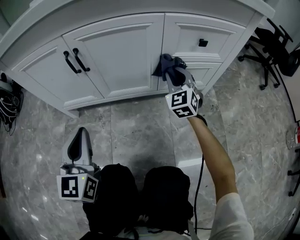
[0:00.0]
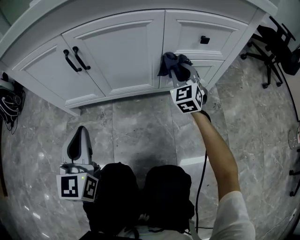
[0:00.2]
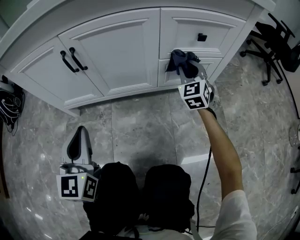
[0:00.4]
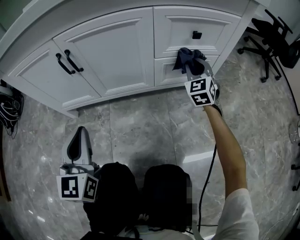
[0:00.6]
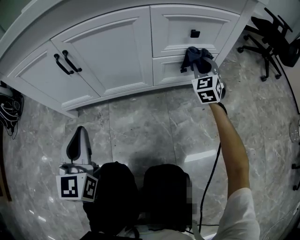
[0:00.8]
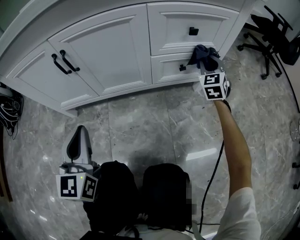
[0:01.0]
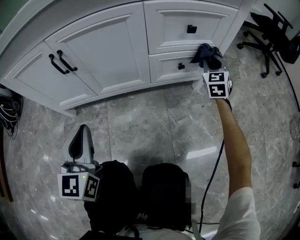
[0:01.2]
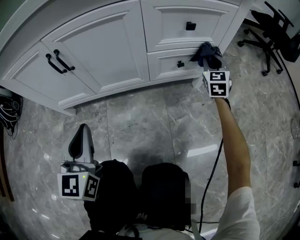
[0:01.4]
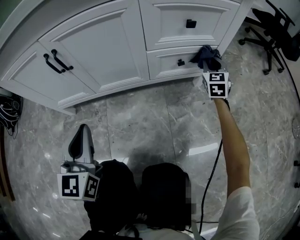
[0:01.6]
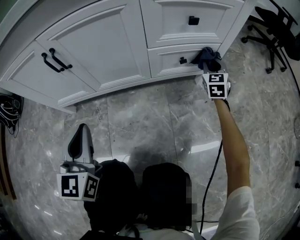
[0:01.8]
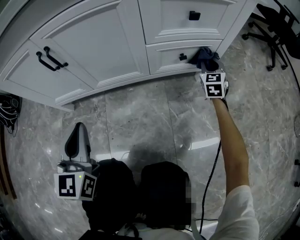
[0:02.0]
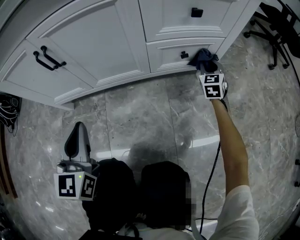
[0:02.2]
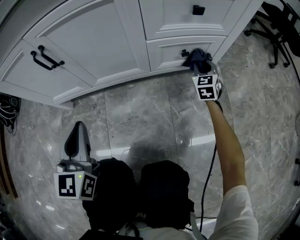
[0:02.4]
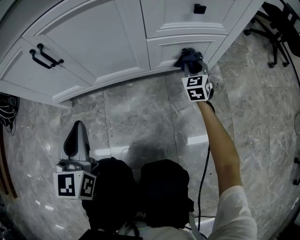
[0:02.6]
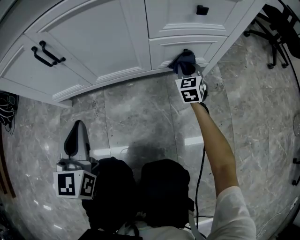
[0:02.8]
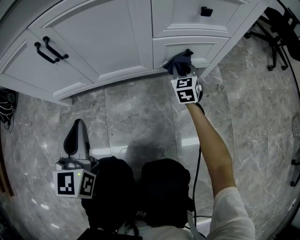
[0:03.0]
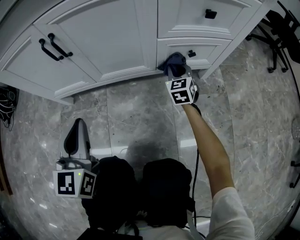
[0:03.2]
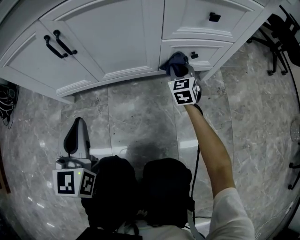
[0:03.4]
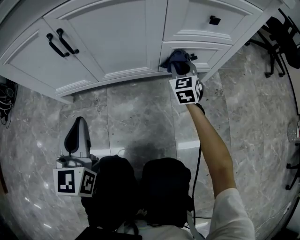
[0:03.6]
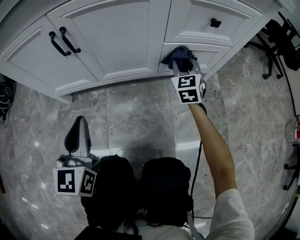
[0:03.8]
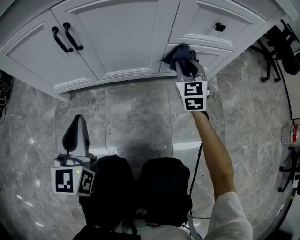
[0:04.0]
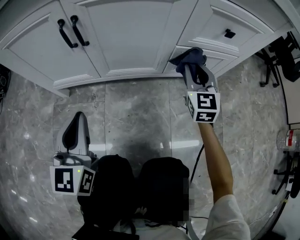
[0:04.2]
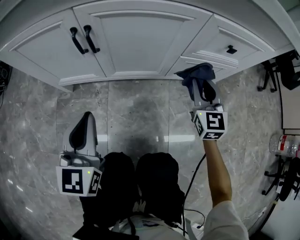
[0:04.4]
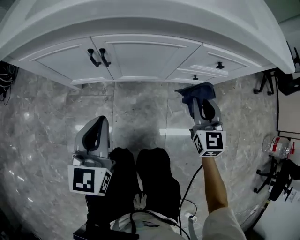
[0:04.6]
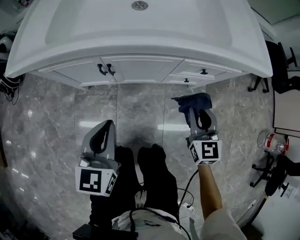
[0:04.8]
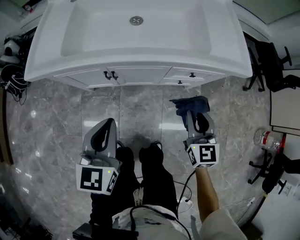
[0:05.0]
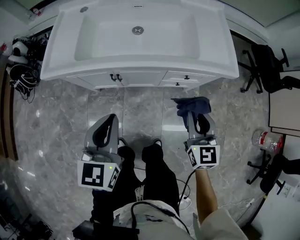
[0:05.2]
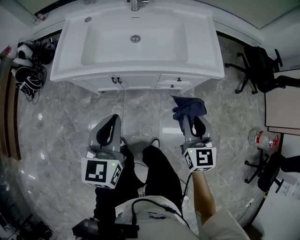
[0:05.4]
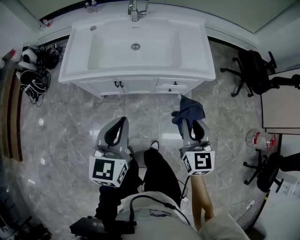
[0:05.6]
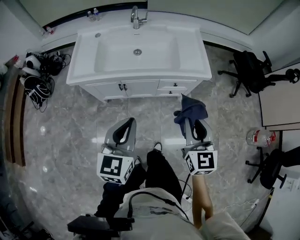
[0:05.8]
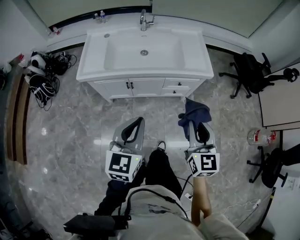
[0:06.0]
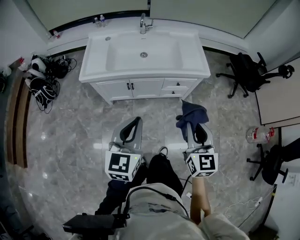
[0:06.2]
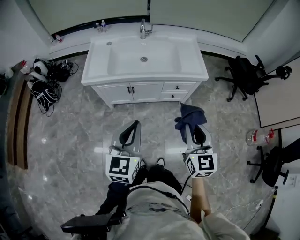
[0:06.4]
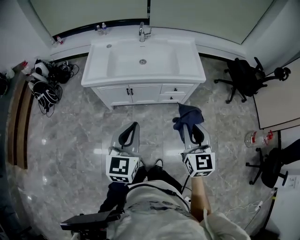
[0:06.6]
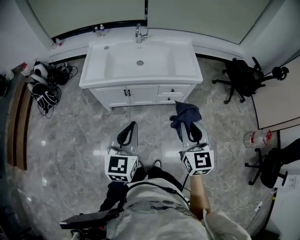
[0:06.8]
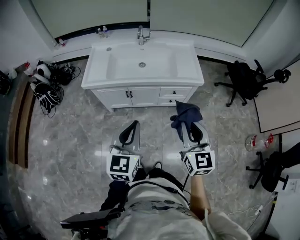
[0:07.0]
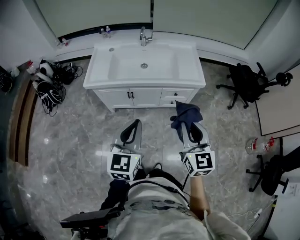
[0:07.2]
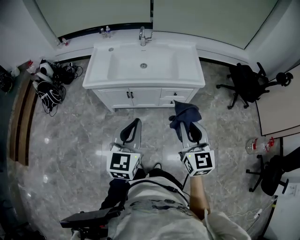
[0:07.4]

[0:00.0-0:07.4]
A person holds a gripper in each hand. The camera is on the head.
0:00.0 to 0:01.4: The right gripper moves to the right, approximately 20 cm, and swivels roughly 20 degrees. The left gripper changes place by approximately 5 cm.
0:01.4 to 0:03.0: The right gripper goes about 20 cm to the left and downward.
0:03.0 to 0:04.4: The right gripper moves upward, some 20 cm. Meanwhile the left gripper moves about 5 cm.
0:04.4 to 0:06.0: The right gripper is displaced upward and backward by approximately 70 cm. Meanwhile the left gripper heads upward, covering approximately 60 cm.
0:06.0 to 0:07.4: Both grippers move upward, approximately 5 cm.

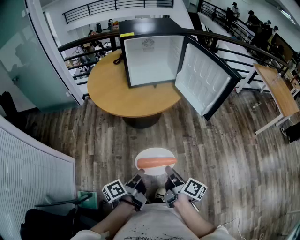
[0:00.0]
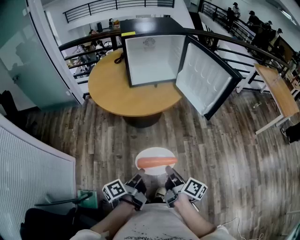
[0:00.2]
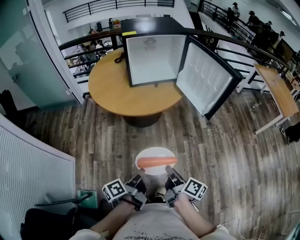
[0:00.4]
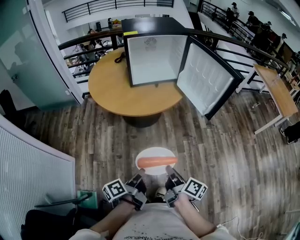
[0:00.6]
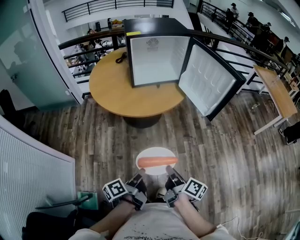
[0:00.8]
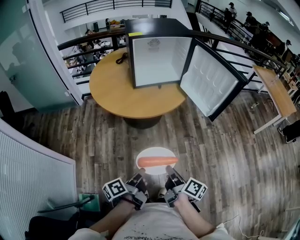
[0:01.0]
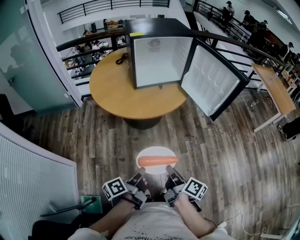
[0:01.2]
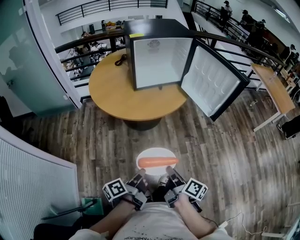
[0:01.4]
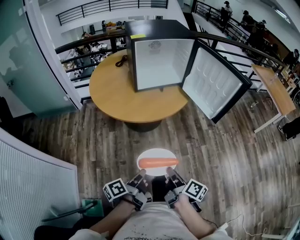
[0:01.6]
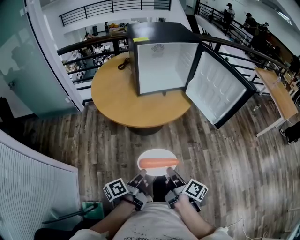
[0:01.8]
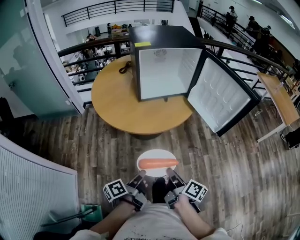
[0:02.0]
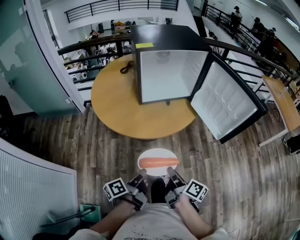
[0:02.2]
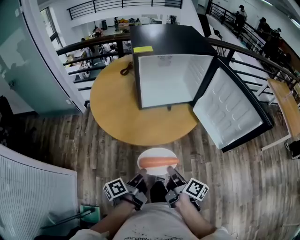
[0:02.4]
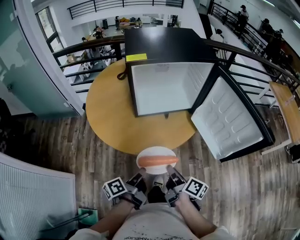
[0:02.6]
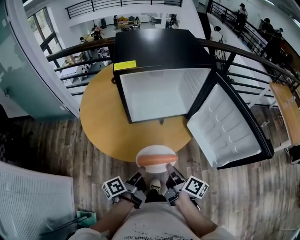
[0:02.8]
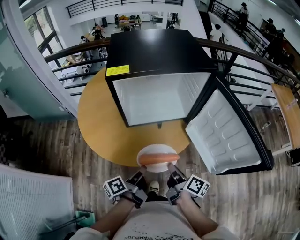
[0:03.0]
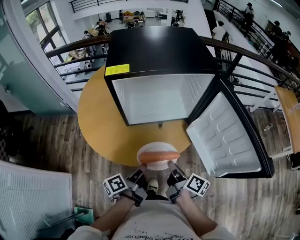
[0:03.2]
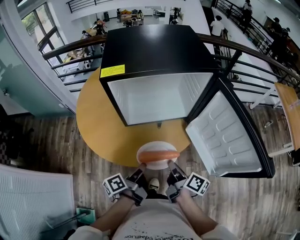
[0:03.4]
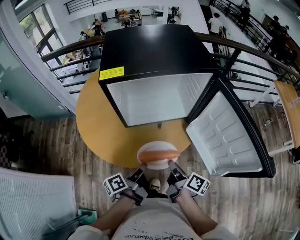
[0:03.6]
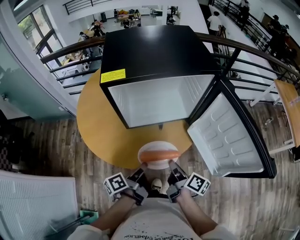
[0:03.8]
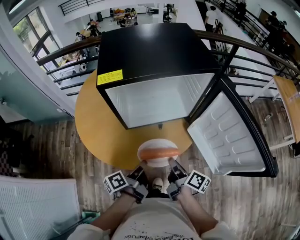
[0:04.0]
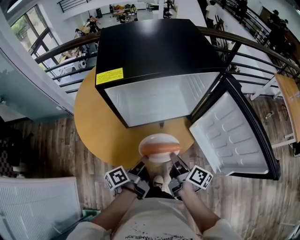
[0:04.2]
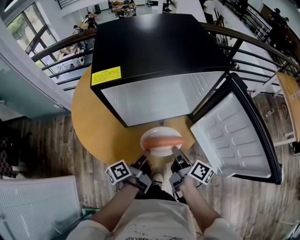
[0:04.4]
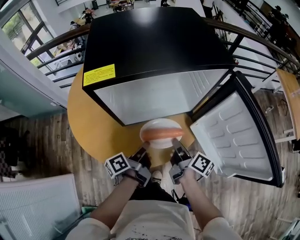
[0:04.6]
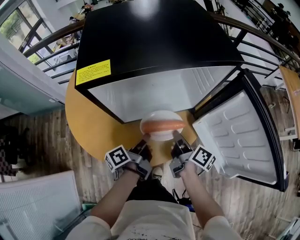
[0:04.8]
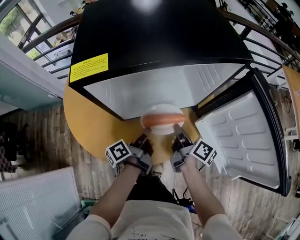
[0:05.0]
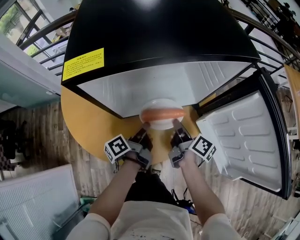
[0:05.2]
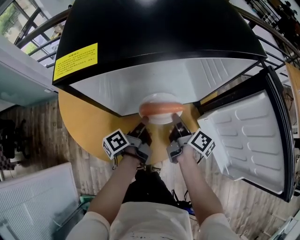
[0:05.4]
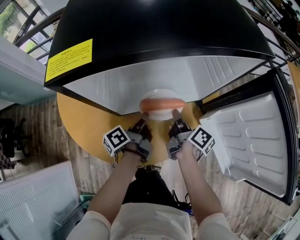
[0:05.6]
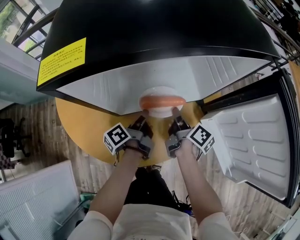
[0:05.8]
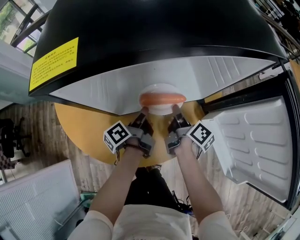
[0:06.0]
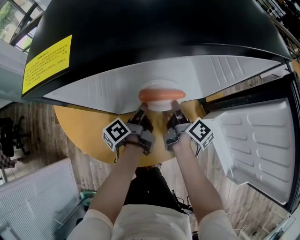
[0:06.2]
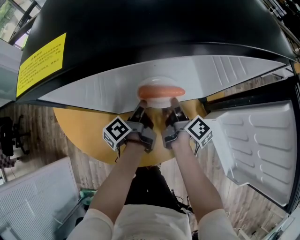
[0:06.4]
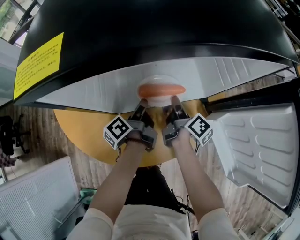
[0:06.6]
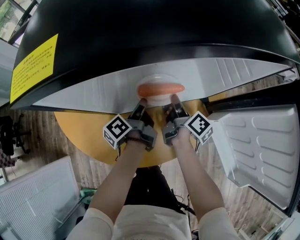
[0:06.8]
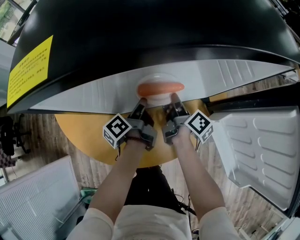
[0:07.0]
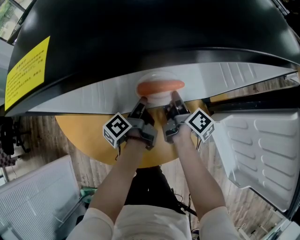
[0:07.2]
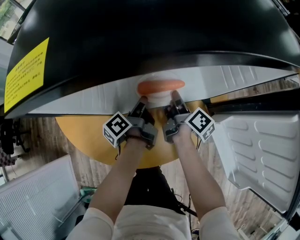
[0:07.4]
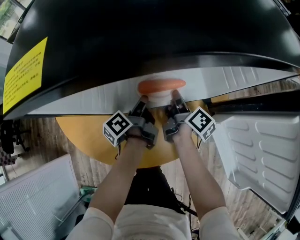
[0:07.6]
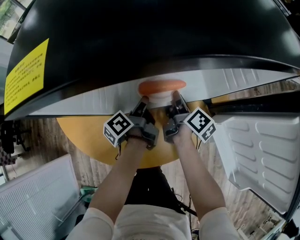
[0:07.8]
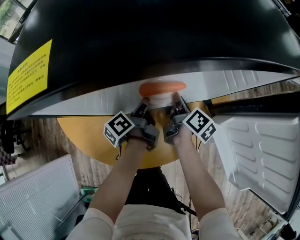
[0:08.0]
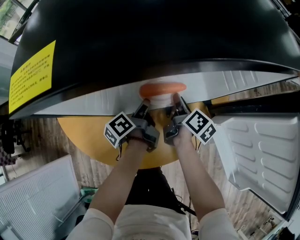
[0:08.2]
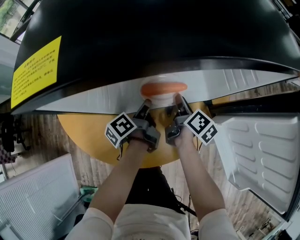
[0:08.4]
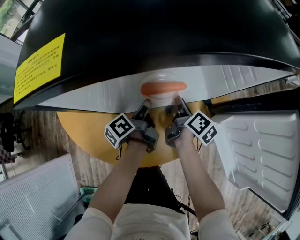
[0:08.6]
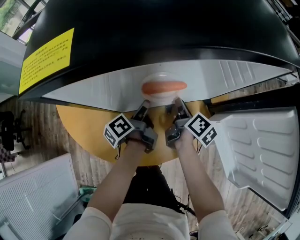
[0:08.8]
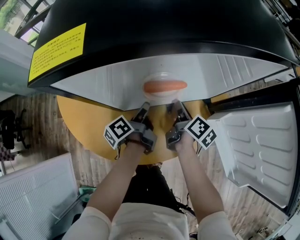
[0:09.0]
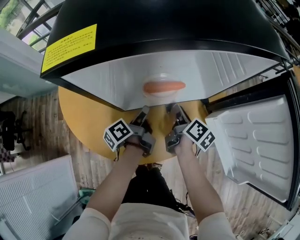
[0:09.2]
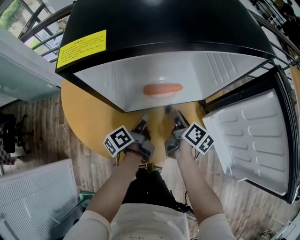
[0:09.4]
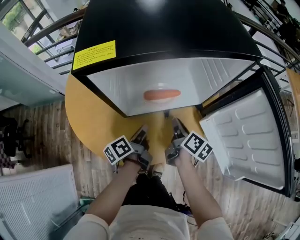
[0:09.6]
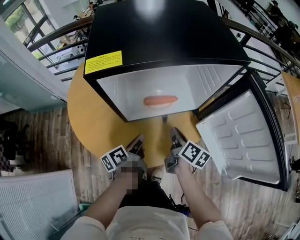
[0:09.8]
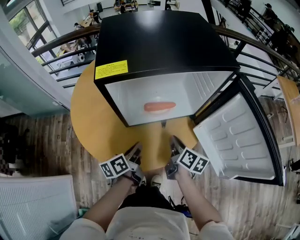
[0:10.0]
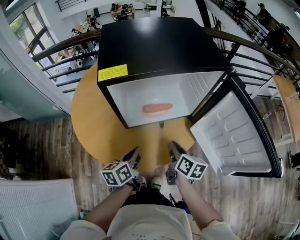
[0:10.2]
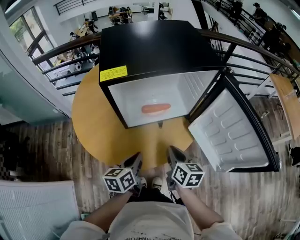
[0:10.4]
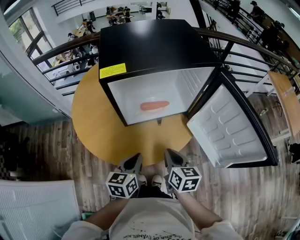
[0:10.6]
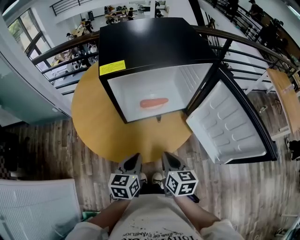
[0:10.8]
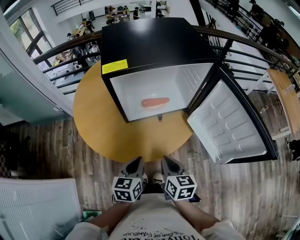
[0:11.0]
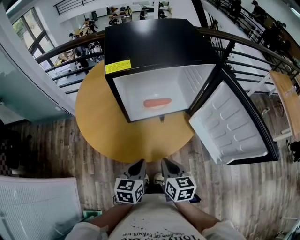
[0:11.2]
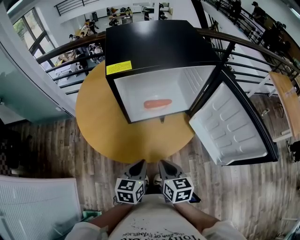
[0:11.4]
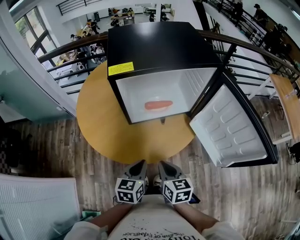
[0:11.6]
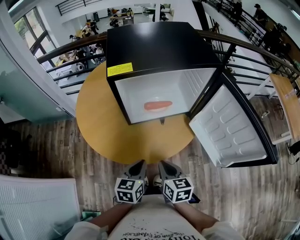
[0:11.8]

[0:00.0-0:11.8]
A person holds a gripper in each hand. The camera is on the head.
0:00.0 to 0:01.4: The right gripper ends up approximately 10 cm from where it was.
0:01.4 to 0:03.0: The right gripper changes place by some 40 cm.
0:03.0 to 0:04.4: The right gripper moves some 10 cm.
0:04.4 to 0:06.0: The right gripper moves roughly 20 cm.
0:06.0 to 0:07.4: The right gripper ends up some 5 cm from where it was.
0:08.8 to 0:10.4: The right gripper changes place by roughly 25 cm, and rotates some 30 degrees.
0:10.4 to 0:11.8: The right gripper changes place by some 10 cm.

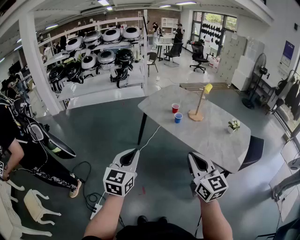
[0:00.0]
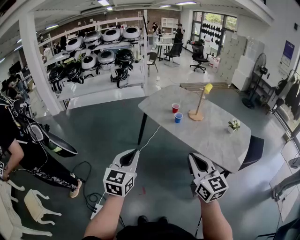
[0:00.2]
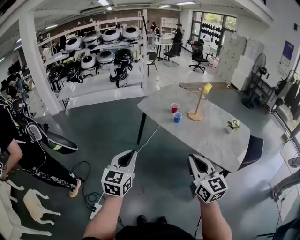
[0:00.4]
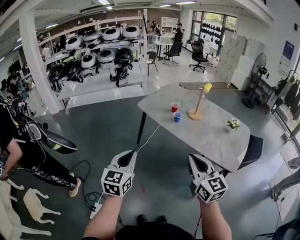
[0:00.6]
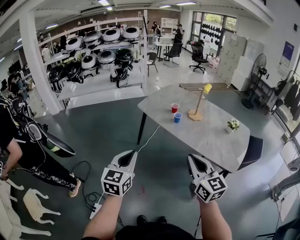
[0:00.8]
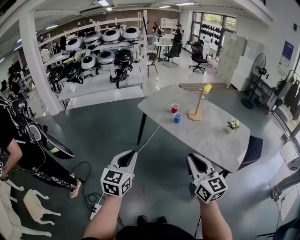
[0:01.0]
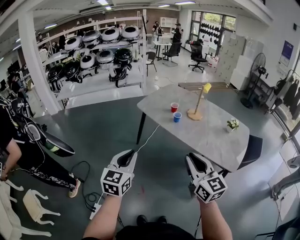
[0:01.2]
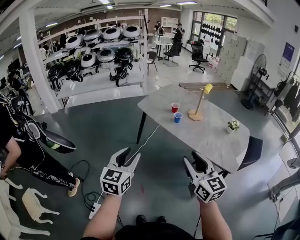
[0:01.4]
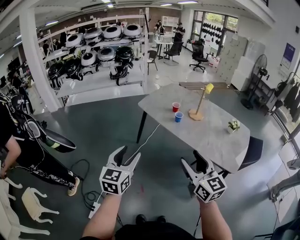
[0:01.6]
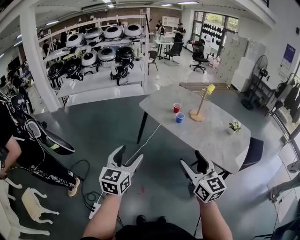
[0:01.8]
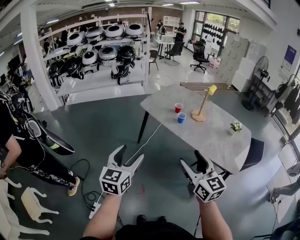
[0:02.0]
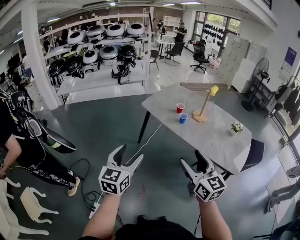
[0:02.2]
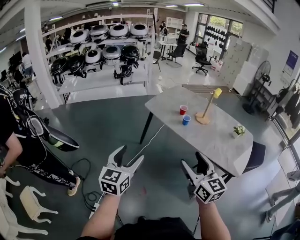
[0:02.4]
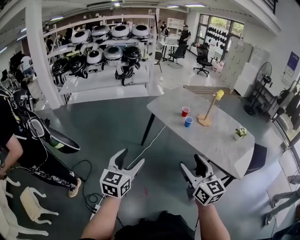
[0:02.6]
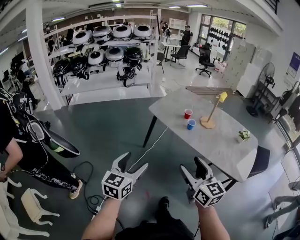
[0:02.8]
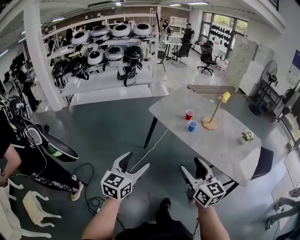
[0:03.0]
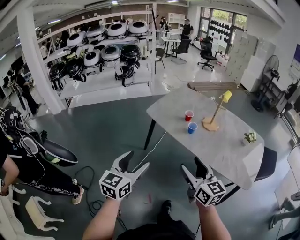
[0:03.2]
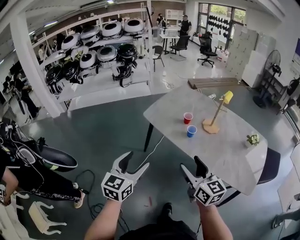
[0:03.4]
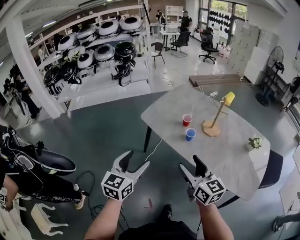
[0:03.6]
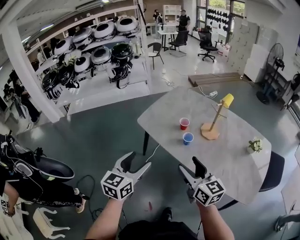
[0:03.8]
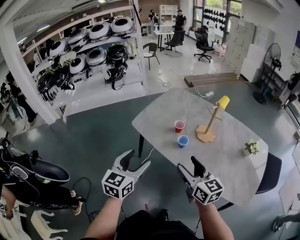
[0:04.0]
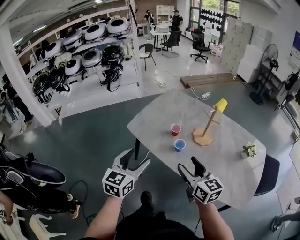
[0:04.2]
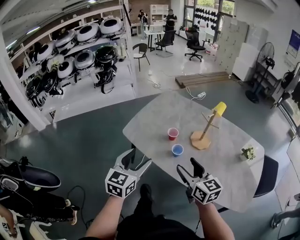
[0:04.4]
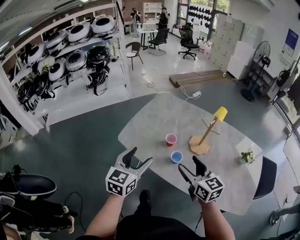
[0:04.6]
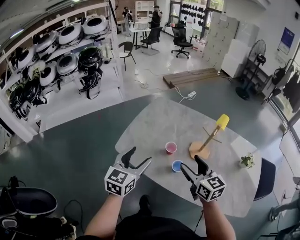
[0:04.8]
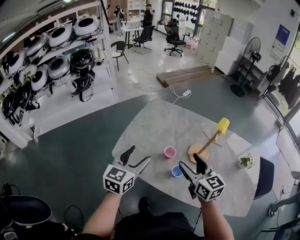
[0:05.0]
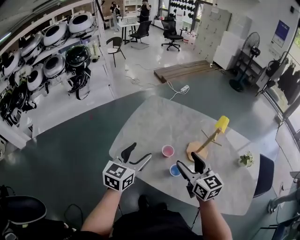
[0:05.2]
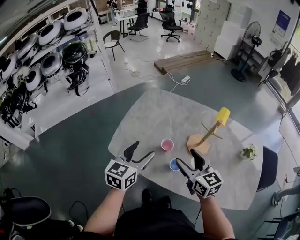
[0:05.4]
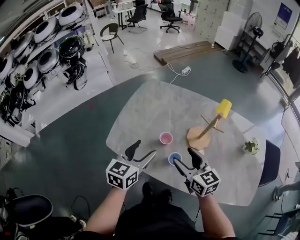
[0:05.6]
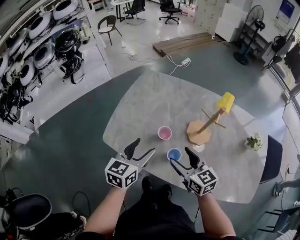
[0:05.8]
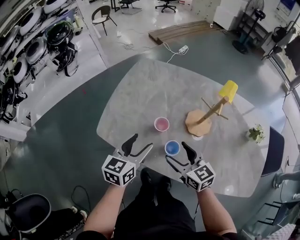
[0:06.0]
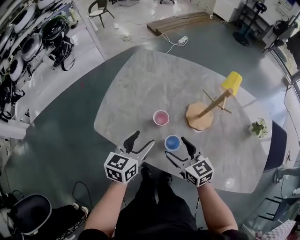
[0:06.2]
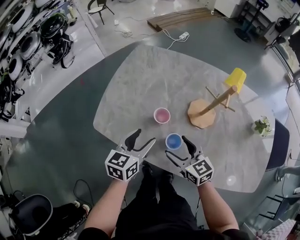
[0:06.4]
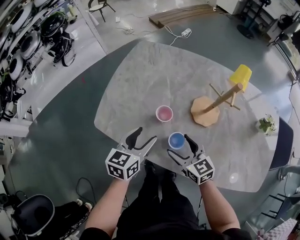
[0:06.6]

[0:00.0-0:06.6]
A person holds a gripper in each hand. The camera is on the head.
0:00.0 to 0:01.6: The left gripper opens up, while the right gripper opens.
0:01.6 to 0:03.2: The left gripper is displaced forward by roughly 10 cm; the right gripper heads forward and downward, covering roughly 15 cm.
0:03.2 to 0:05.0: The pair of grippers is taken forward, about 50 cm.
0:05.0 to 0:06.6: The right gripper travels downward by roughly 20 cm, while the left gripper moves downward and to the right, about 20 cm.
